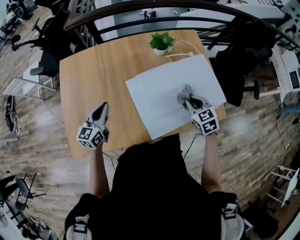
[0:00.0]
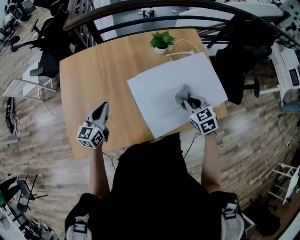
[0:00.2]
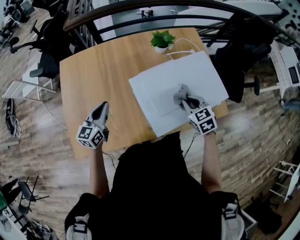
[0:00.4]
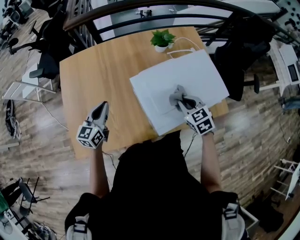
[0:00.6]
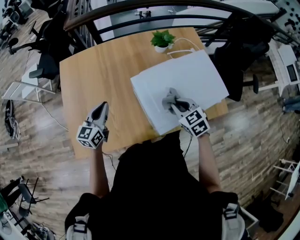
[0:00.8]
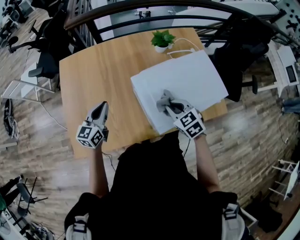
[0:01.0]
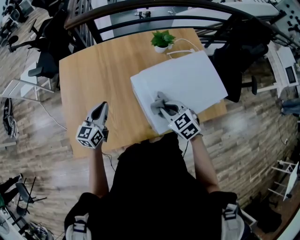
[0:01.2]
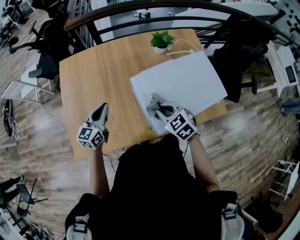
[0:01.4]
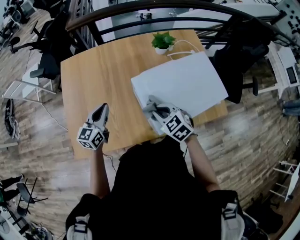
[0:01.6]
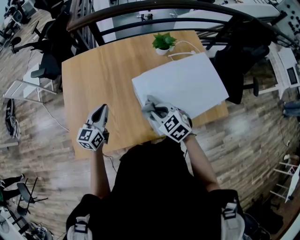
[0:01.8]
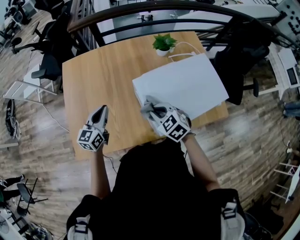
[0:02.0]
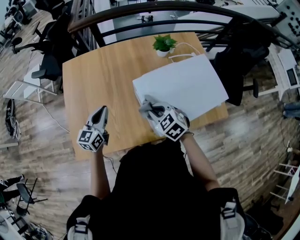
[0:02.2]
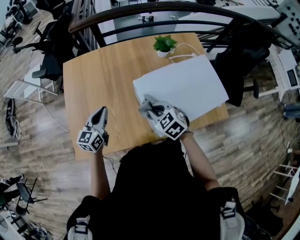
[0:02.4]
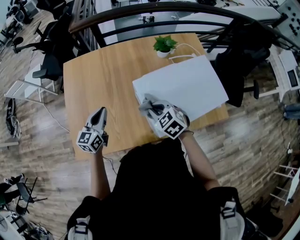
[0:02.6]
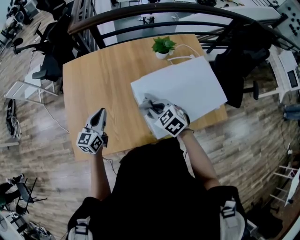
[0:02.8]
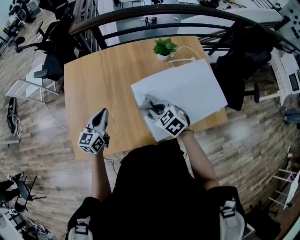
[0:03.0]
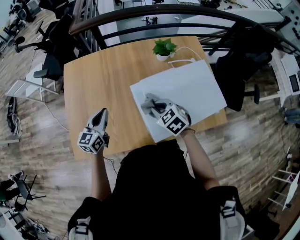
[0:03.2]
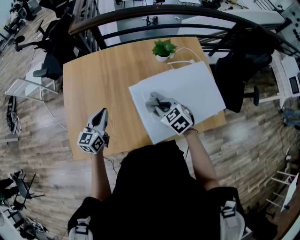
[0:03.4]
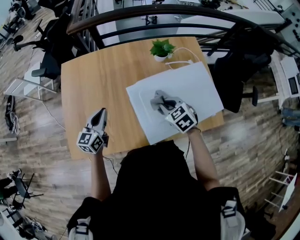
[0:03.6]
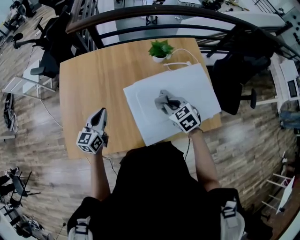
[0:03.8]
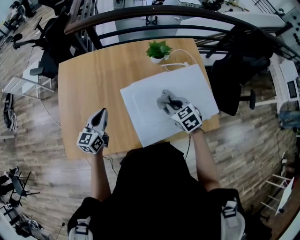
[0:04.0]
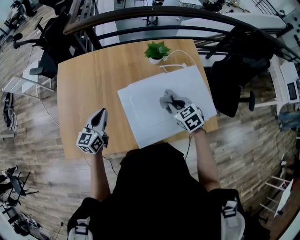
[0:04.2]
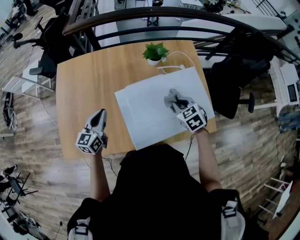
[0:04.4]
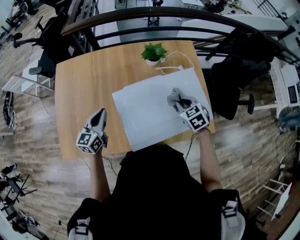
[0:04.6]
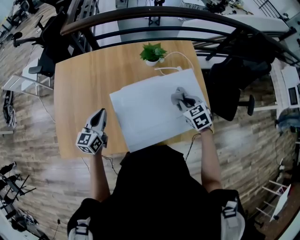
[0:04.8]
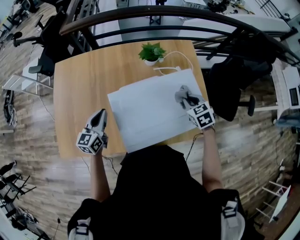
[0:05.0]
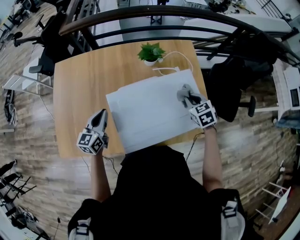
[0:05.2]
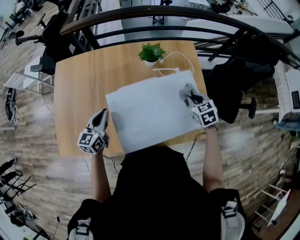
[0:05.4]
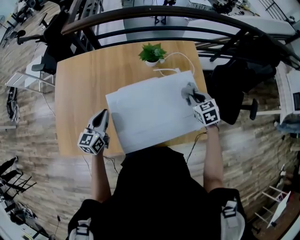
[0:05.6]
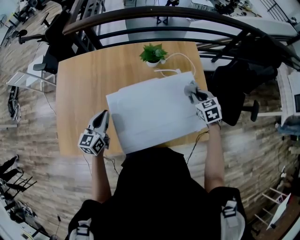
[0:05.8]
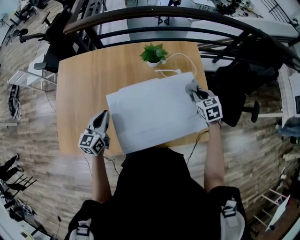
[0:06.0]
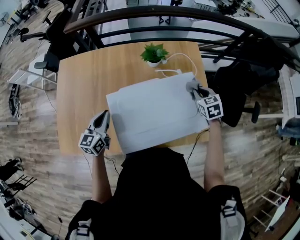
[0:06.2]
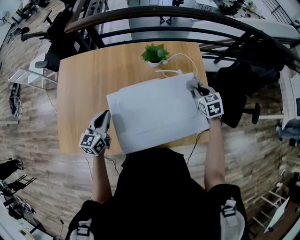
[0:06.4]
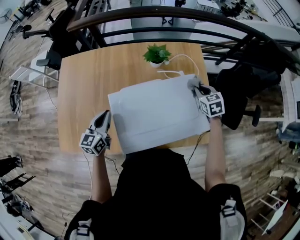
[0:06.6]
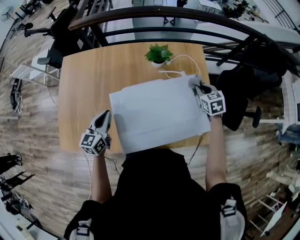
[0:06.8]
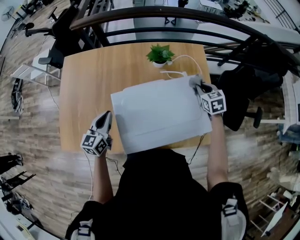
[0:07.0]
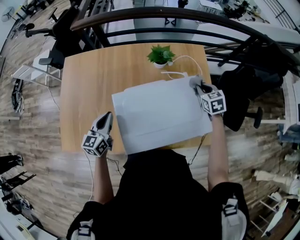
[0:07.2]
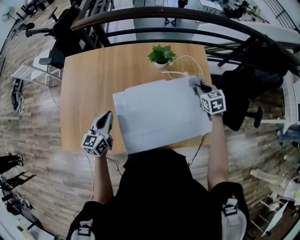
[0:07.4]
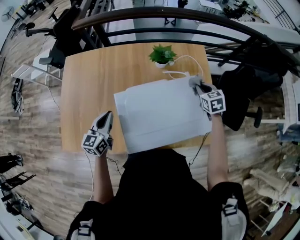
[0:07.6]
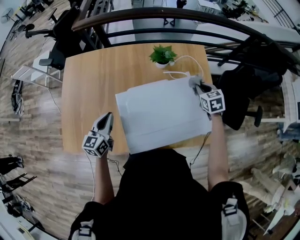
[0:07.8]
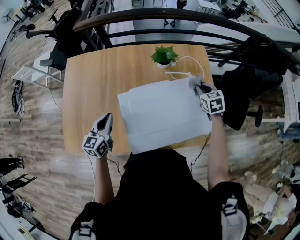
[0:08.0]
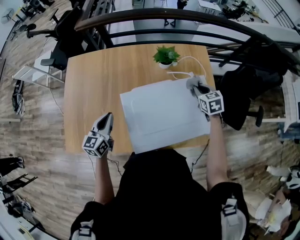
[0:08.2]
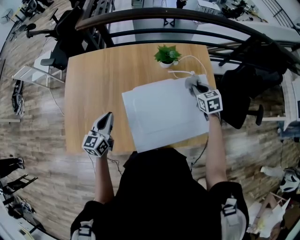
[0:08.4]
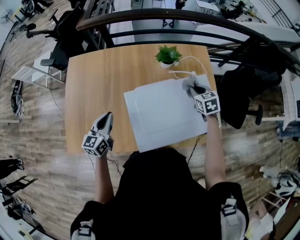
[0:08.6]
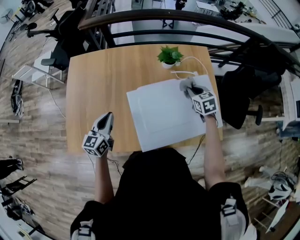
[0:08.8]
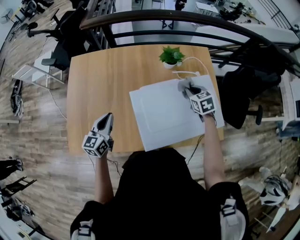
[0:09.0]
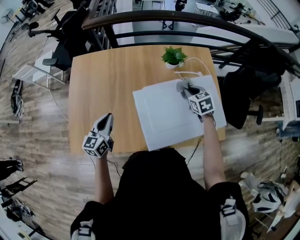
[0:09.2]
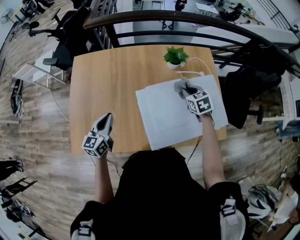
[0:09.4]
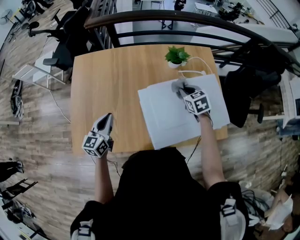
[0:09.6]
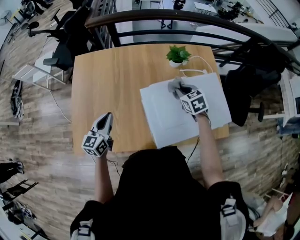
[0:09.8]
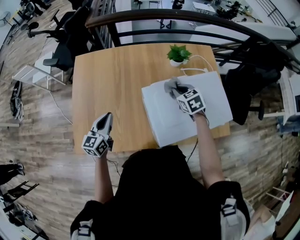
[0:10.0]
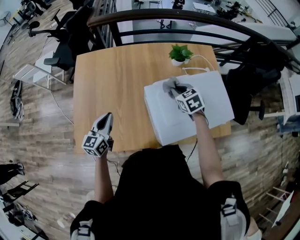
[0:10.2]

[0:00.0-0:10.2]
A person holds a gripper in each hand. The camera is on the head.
0:00.0 to 0:01.4: The right gripper shifts approximately 20 cm to the left.
0:01.4 to 0:03.0: There are only small adjustments of the grippers.
0:03.0 to 0:04.4: The right gripper moves to the right, approximately 20 cm. Meanwhile the left gripper heads to the right, covering roughly 10 cm.
0:04.4 to 0:05.8: The left gripper travels to the right by some 5 cm, while the right gripper heads to the right and forward, covering some 15 cm.
0:05.8 to 0:07.2: The right gripper shifts approximately 5 cm forward.
0:07.2 to 0:08.8: The right gripper heads to the left, covering approximately 10 cm, while the left gripper is displaced to the left by about 5 cm.
0:08.8 to 0:10.2: The left gripper travels to the left by about 10 cm; the right gripper shifts approximately 15 cm to the left.

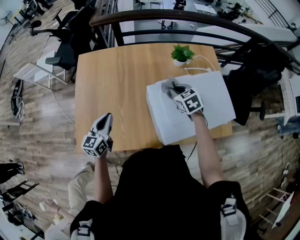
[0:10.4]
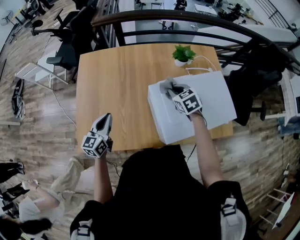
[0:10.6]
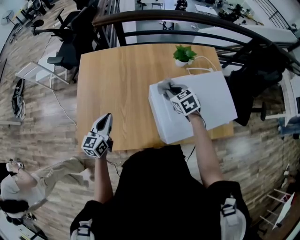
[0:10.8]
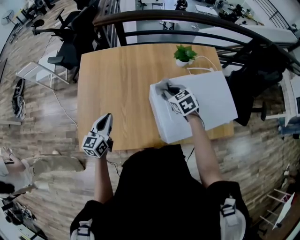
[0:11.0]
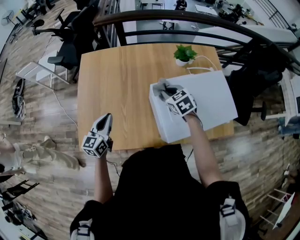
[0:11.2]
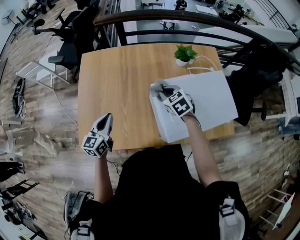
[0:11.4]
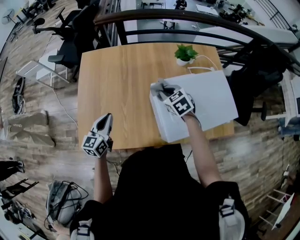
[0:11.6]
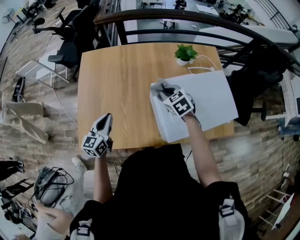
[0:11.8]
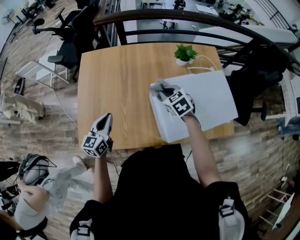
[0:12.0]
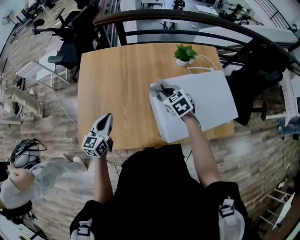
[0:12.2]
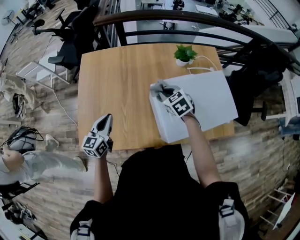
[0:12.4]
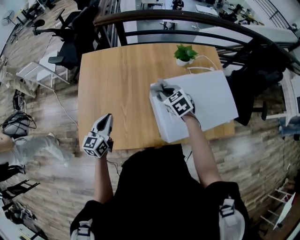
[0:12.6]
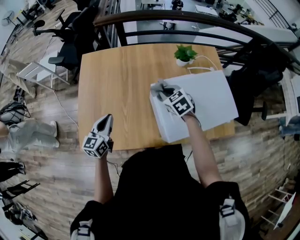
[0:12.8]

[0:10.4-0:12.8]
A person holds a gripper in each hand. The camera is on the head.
0:10.4 to 0:11.6: The right gripper moves to the left, roughly 10 cm.
0:11.6 to 0:12.8: Both grippers stay about where they are.

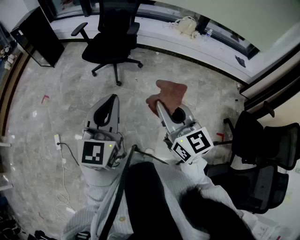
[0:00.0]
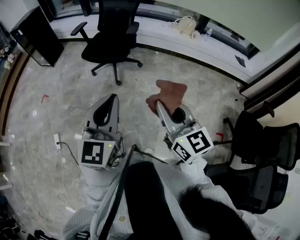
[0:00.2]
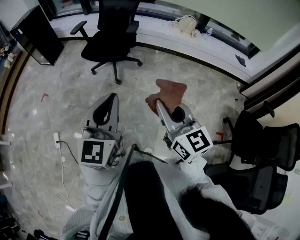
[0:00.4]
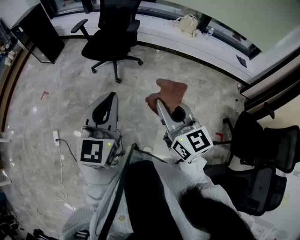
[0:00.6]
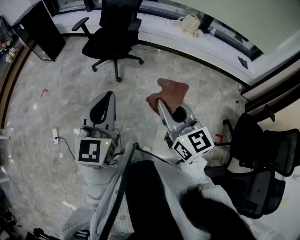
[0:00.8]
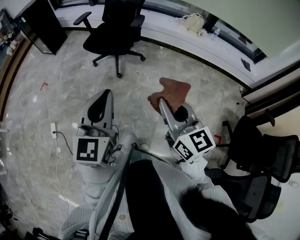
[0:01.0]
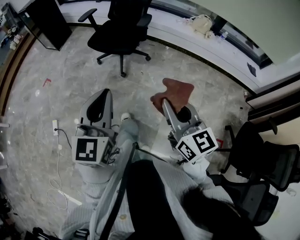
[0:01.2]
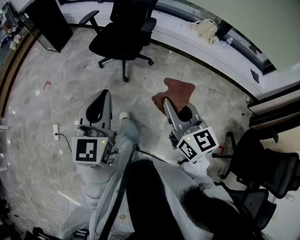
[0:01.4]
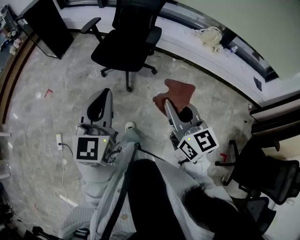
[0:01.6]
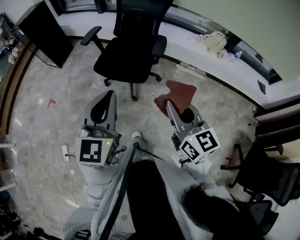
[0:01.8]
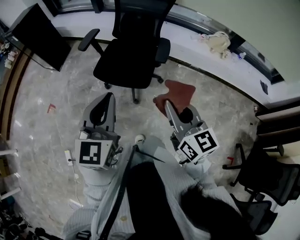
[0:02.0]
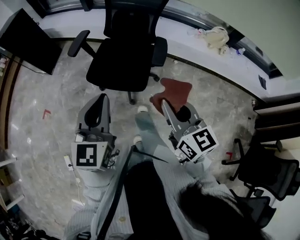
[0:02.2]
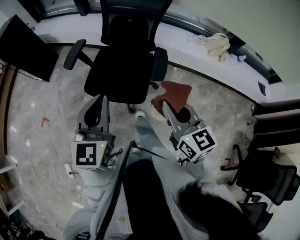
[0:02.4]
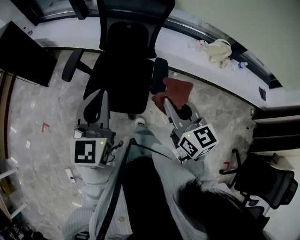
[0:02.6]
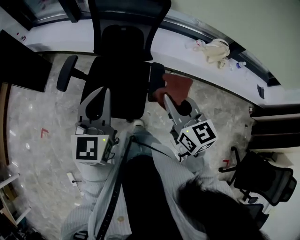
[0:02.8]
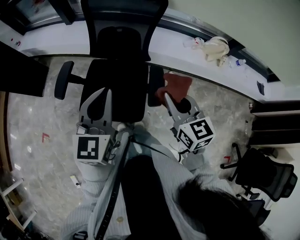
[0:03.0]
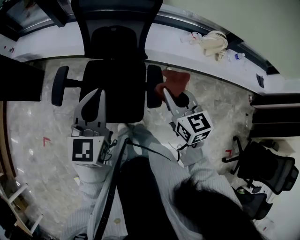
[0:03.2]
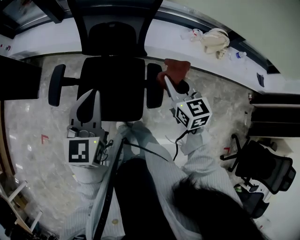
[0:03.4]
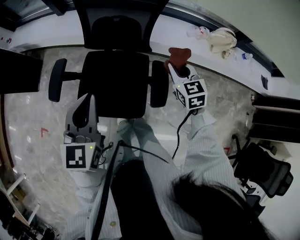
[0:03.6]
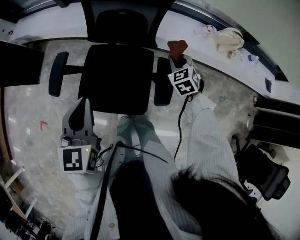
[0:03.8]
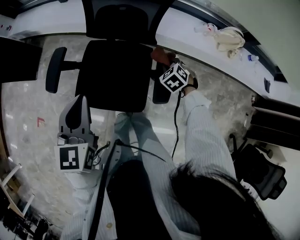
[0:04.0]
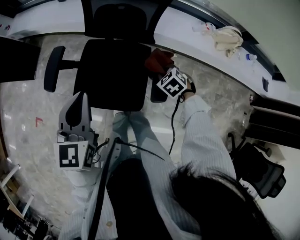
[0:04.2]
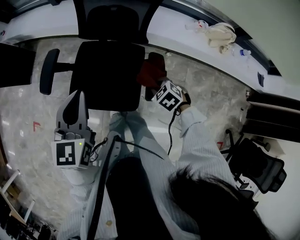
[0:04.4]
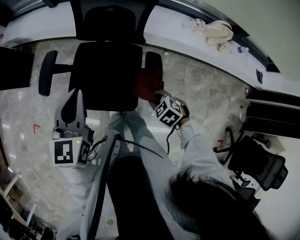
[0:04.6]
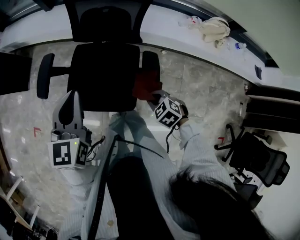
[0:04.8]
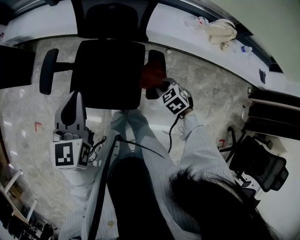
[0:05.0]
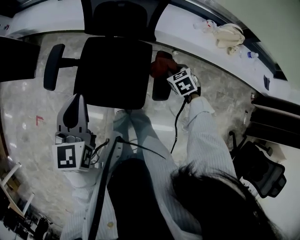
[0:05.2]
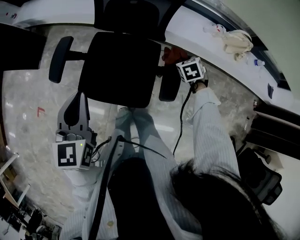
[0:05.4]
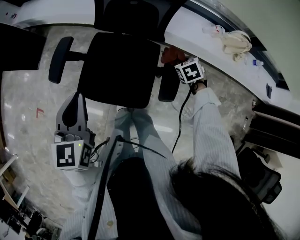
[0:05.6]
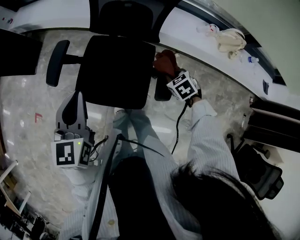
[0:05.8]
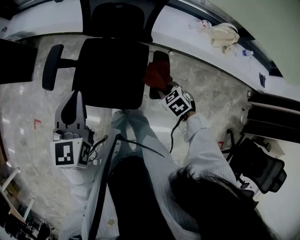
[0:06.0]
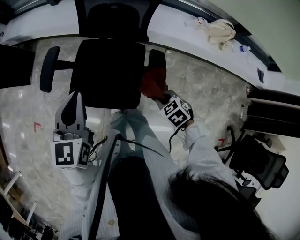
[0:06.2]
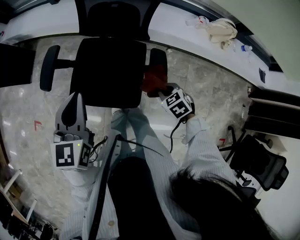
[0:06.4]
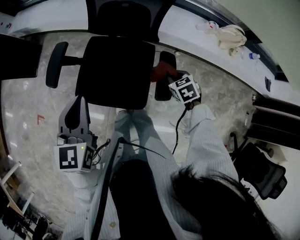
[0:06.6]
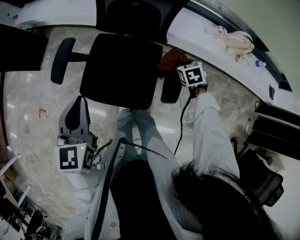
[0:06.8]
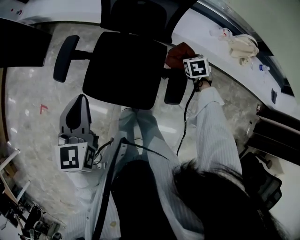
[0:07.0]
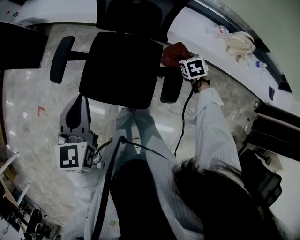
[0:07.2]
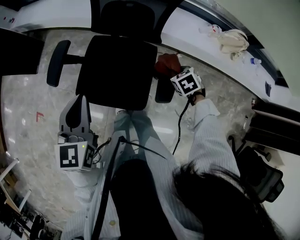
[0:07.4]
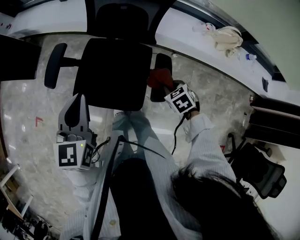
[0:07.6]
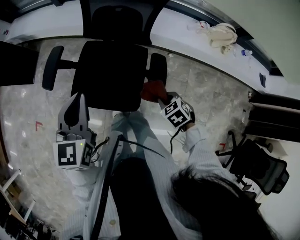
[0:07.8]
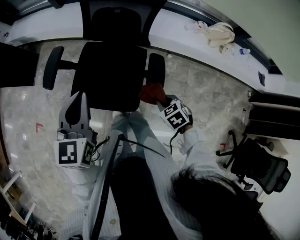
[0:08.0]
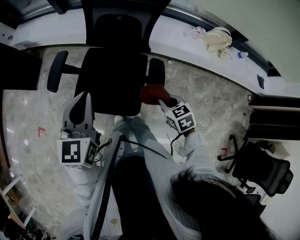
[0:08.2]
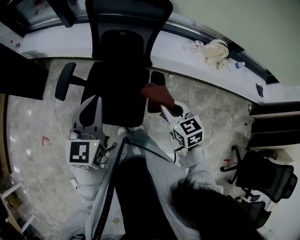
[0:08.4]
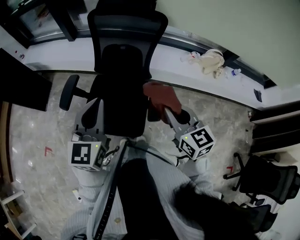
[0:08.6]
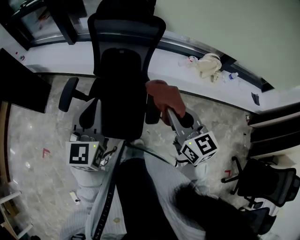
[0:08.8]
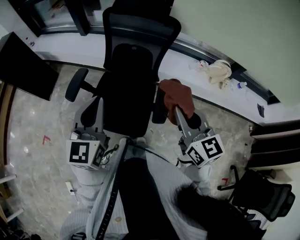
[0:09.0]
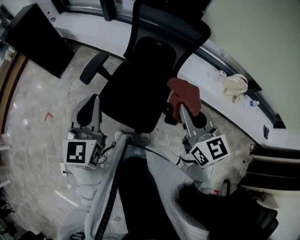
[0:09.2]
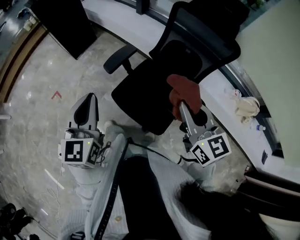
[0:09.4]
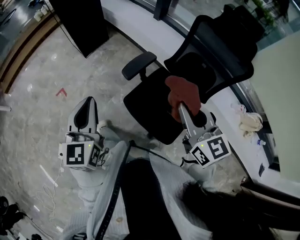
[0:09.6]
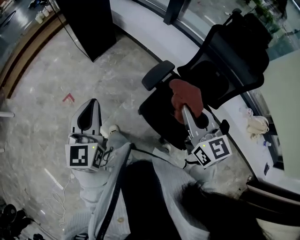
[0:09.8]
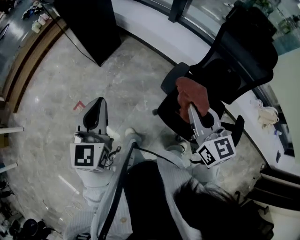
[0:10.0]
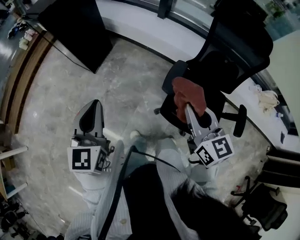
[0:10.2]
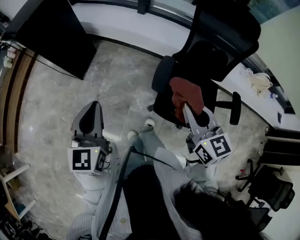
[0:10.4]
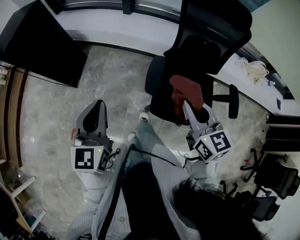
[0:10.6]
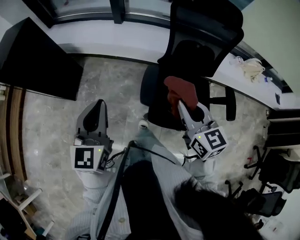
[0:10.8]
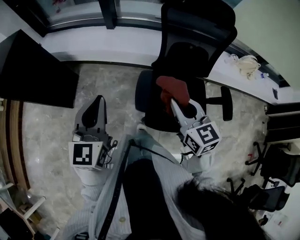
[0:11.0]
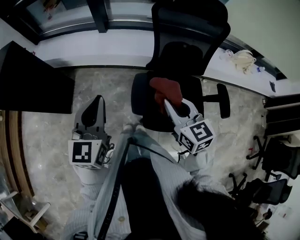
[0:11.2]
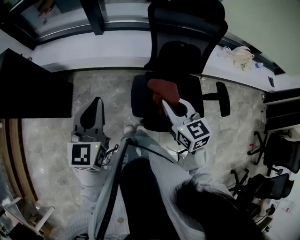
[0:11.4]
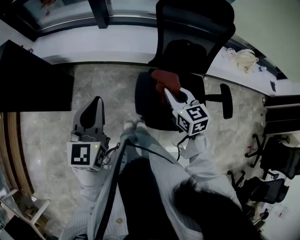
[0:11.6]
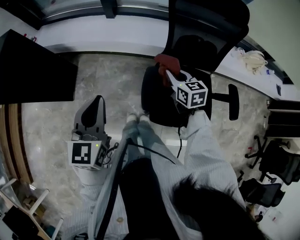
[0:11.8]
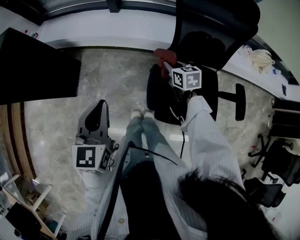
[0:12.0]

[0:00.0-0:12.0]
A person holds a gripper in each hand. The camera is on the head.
0:00.0 to 0:01.6: The grippers both shift forward by some 25 cm.
0:01.6 to 0:03.0: The pair of grippers is taken forward, about 60 cm.
0:03.0 to 0:04.4: The left gripper heads downward, to the left and forward, covering some 10 cm. Meanwhile the right gripper is displaced downward by about 25 cm, and points its fingers approximately 50 degrees further downward.
0:04.4 to 0:06.0: The right gripper moves forward and backward over approximately 20 cm, changing direction 2 times.
0:06.0 to 0:07.6: The right gripper goes forward and backward, roughly 20 cm each way, reversing 2 times.
0:07.6 to 0:09.0: The left gripper shifts about 15 cm upward. Meanwhile the right gripper is displaced upward by about 35 cm, and points its fingers about 60 degrees further upward.
0:09.0 to 0:10.4: The pair of grippers is taken about 60 cm.
0:10.4 to 0:12.0: The left gripper shifts approximately 20 cm forward and to the right, while the right gripper heads forward and downward, covering roughly 40 cm, and swivels approximately 30 degrees.
